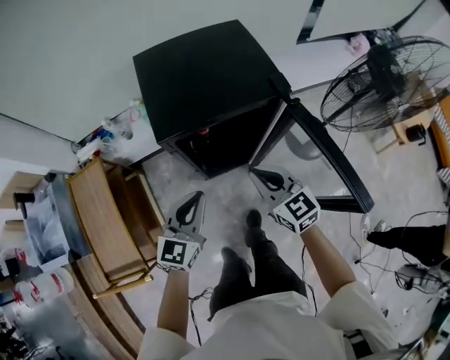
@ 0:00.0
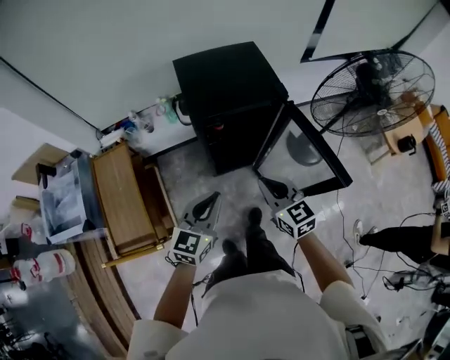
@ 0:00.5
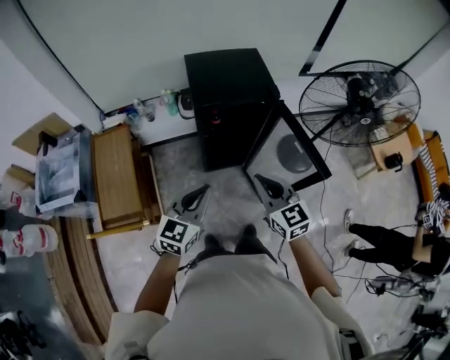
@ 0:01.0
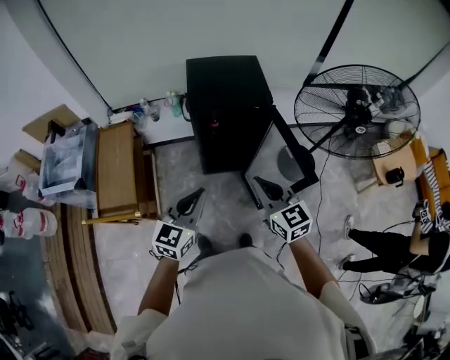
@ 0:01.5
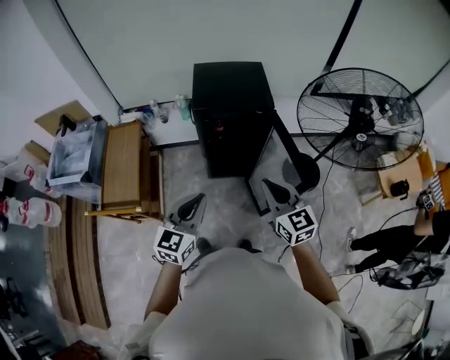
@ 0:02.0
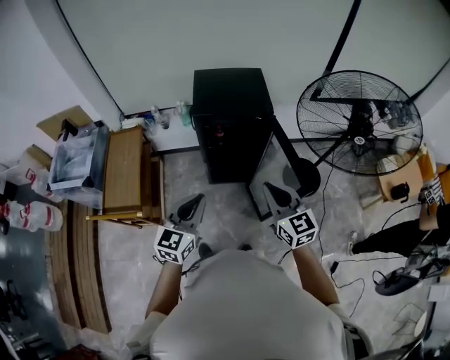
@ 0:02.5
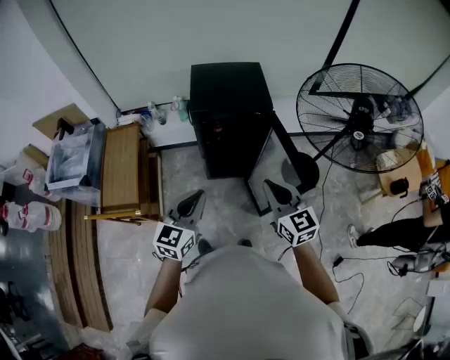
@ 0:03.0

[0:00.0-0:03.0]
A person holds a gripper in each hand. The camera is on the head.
0:00.0 to 0:01.5: Both grippers travel together backward and upward, roughly 30 cm.
0:01.5 to 0:03.0: The right gripper shifts approximately 5 cm to the right.

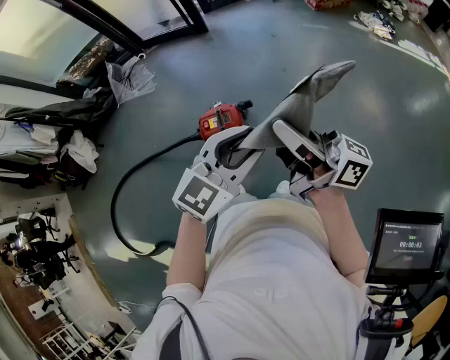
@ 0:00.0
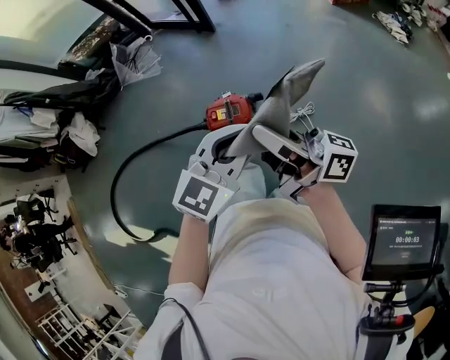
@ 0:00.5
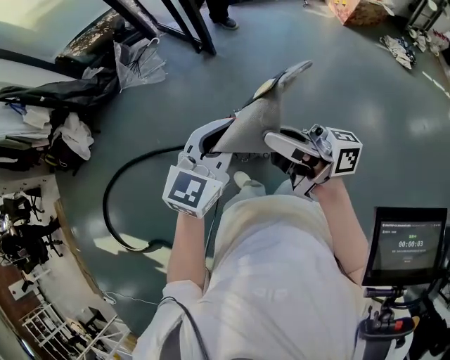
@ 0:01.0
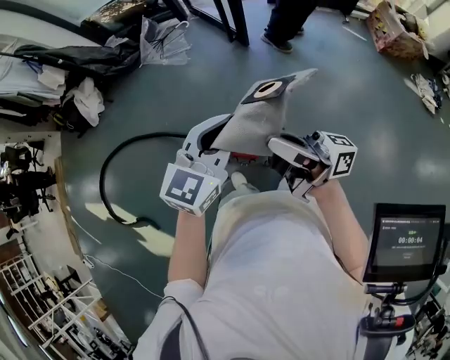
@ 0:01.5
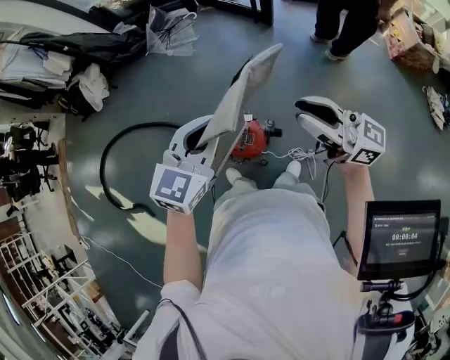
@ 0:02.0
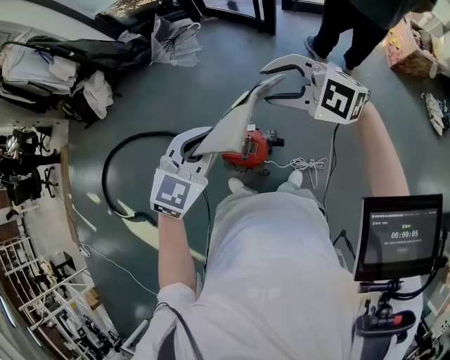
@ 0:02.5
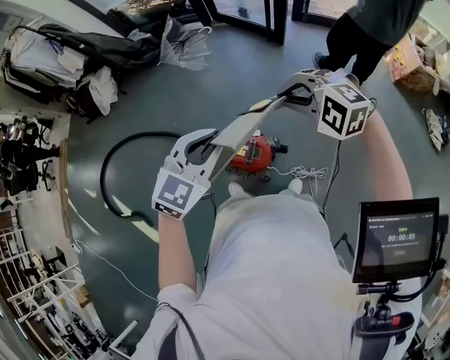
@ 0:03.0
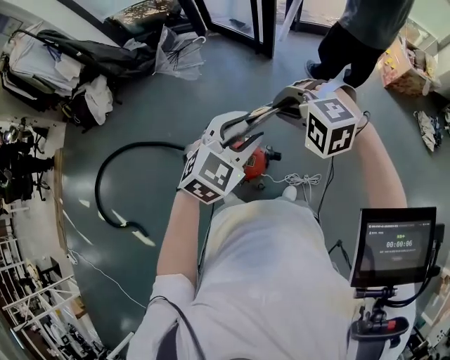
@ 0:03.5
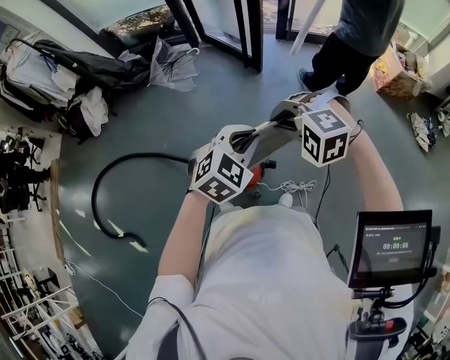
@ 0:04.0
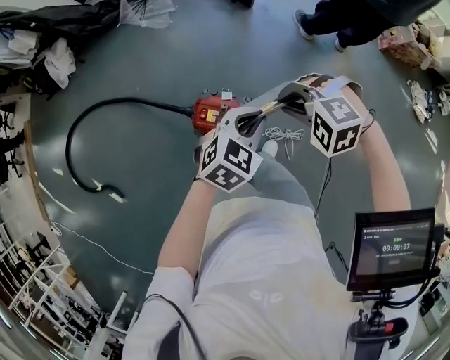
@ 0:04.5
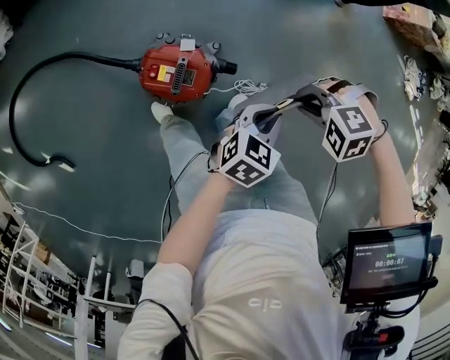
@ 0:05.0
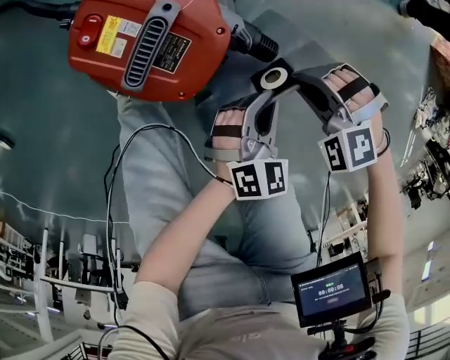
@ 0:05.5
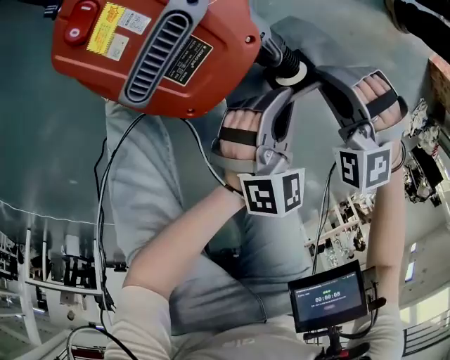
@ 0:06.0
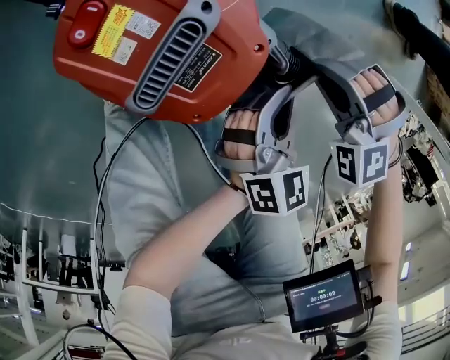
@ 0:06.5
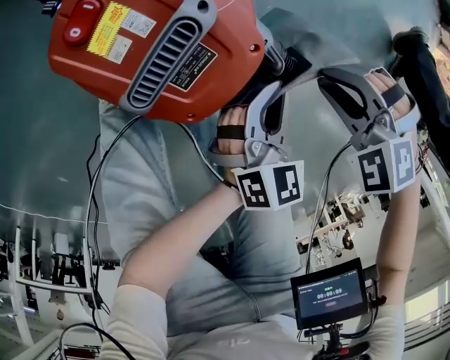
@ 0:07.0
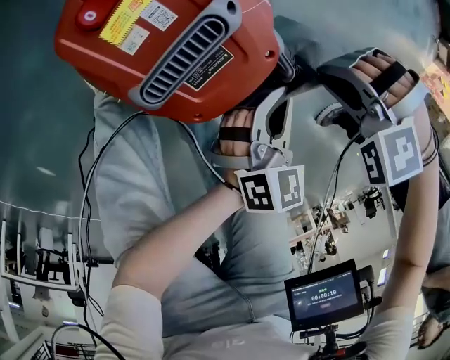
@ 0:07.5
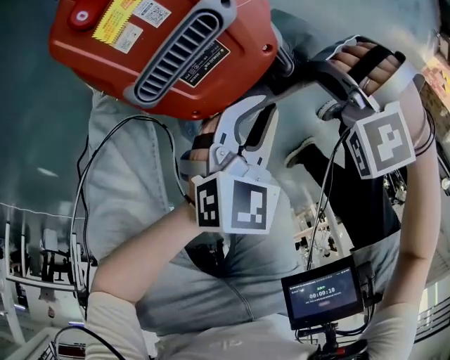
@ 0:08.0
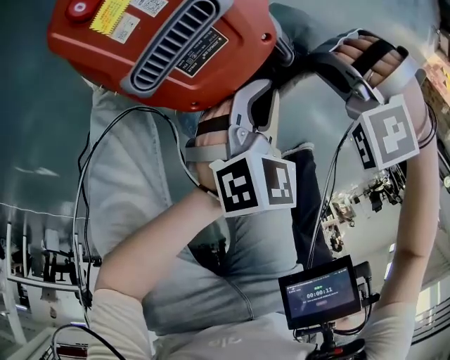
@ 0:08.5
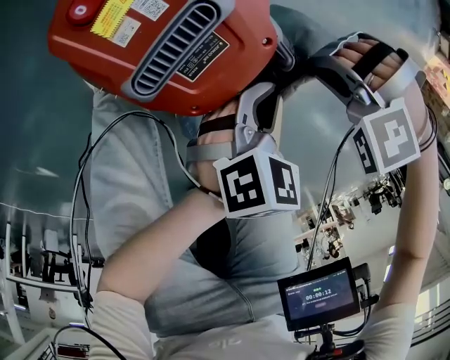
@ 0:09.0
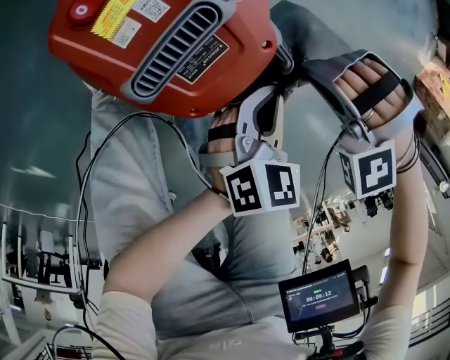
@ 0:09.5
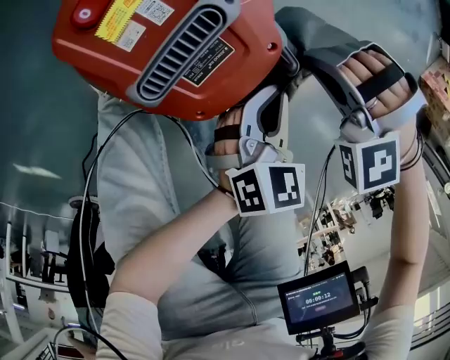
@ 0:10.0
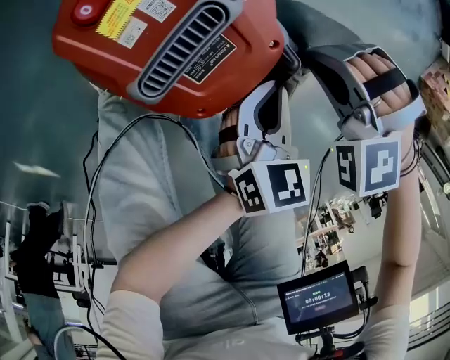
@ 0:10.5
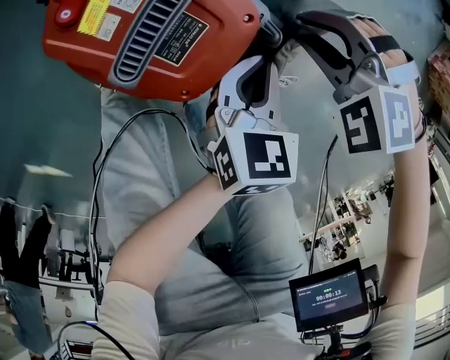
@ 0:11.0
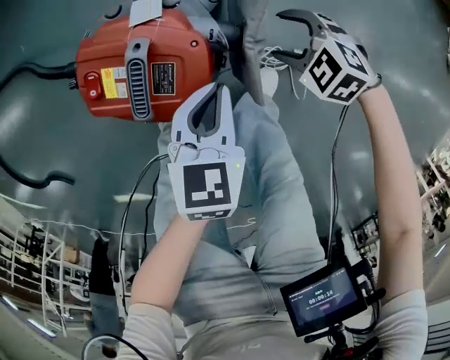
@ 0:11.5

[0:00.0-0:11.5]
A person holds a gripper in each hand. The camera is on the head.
0:00.0 to 0:02.0: The left gripper shifts by about 35 cm, rotates roughly 40 degrees, and closes. Meanwhile the right gripper ends up approximately 35 cm from where it was, and turns by approximately 40 degrees.
0:02.0 to 0:04.0: The right gripper is displaced to the left by about 5 cm, angles its fingers downward, by about 80 degrees, and opens, then closes again, while the left gripper moves to the right, approximately 5 cm, changes its angle by about 30 degrees, and opens, then closes again.
0:04.0 to 0:06.0: The two grippers go about 70 cm downward. The right gripper changes its angle by about 20 degrees. The left gripper changes its angle by approximately 40 degrees.
0:06.0 to 0:07.5: The right gripper turns by some 30 degrees.
0:09.5 to 0:11.5: The left gripper changes place by some 10 cm; the right gripper goes some 5 cm downward, rolls clockwise, seen from behind, by roughly 80 degrees, and opens its fingers.

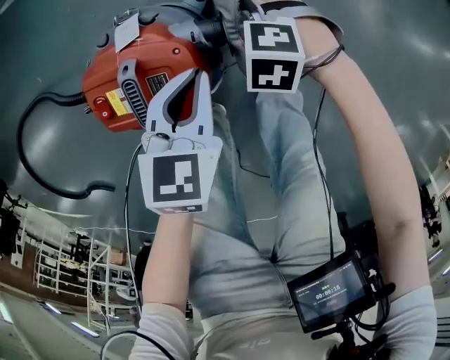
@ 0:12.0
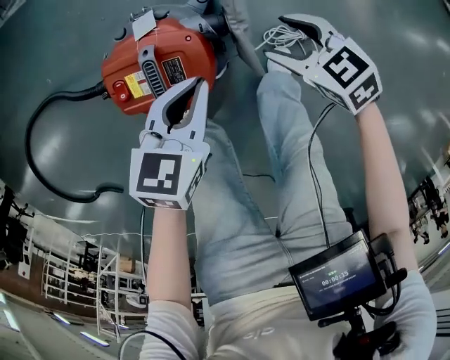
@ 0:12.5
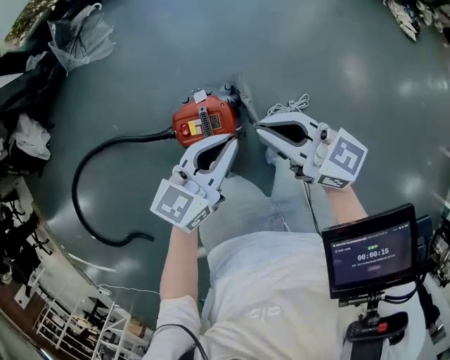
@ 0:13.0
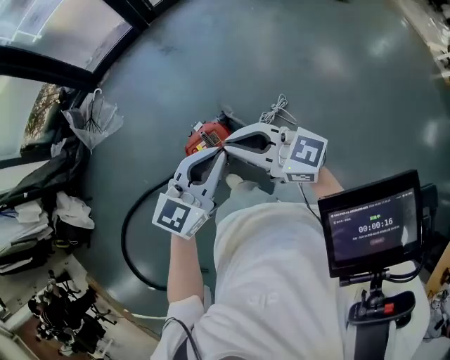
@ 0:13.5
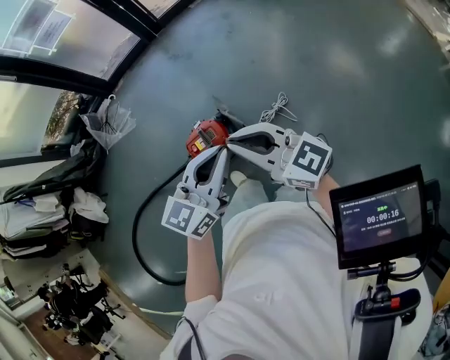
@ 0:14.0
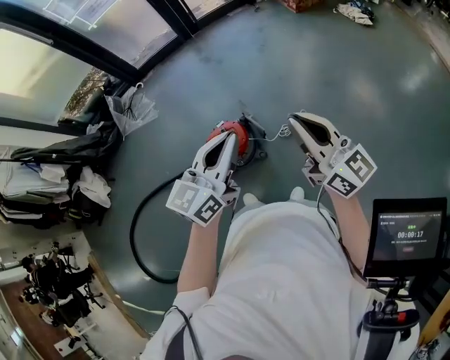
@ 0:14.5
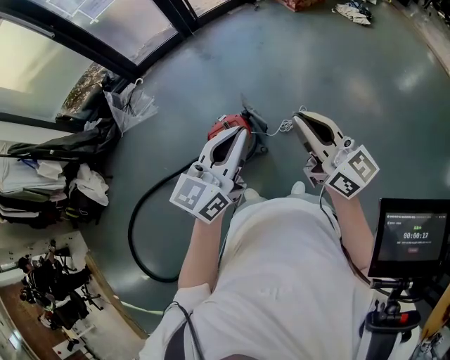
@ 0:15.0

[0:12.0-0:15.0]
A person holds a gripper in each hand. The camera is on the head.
0:12.0 to 0:13.5: The two grippers go approximately 70 cm upward. The right gripper angles its fingers upward, by roughly 80 degrees, and closes; the left gripper tips its fingers upward by approximately 40 degrees.
0:13.5 to 0:15.0: The right gripper travels to the right, backward and upward by about 20 cm, and turns by some 30 degrees. The left gripper shifts about 15 cm backward and upward.

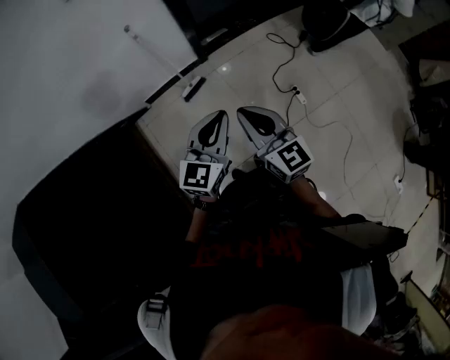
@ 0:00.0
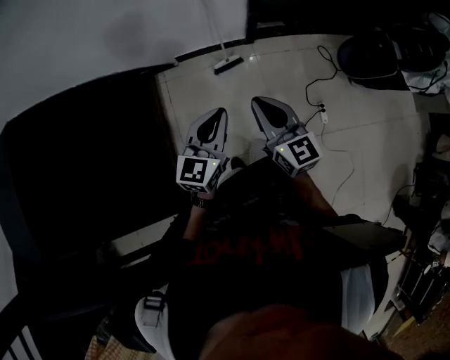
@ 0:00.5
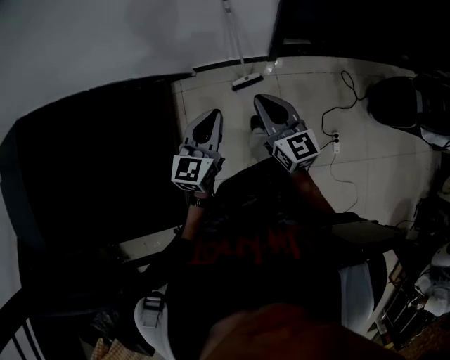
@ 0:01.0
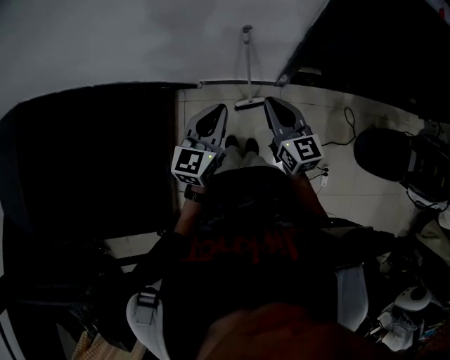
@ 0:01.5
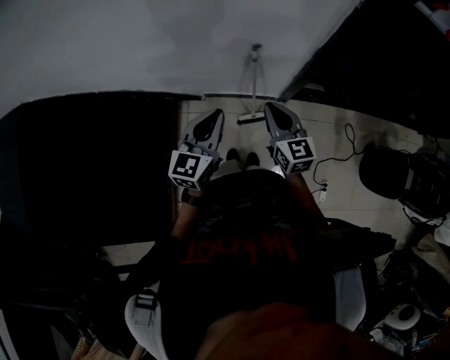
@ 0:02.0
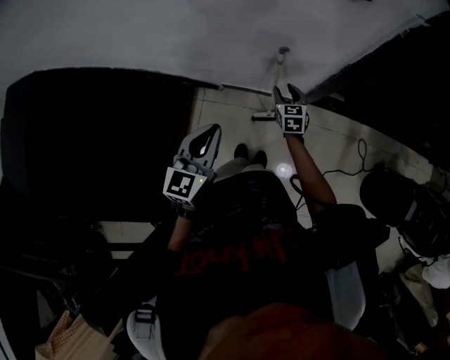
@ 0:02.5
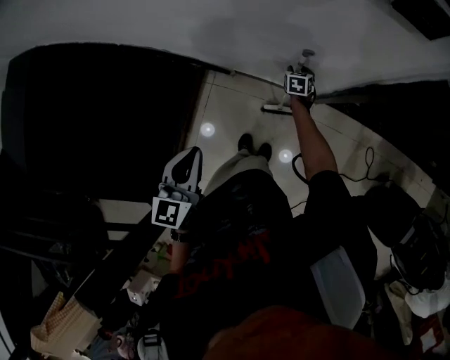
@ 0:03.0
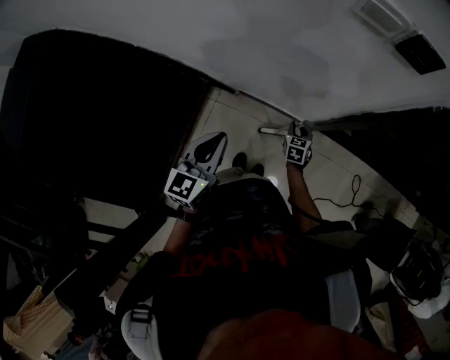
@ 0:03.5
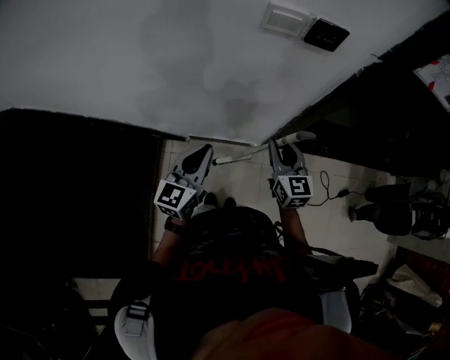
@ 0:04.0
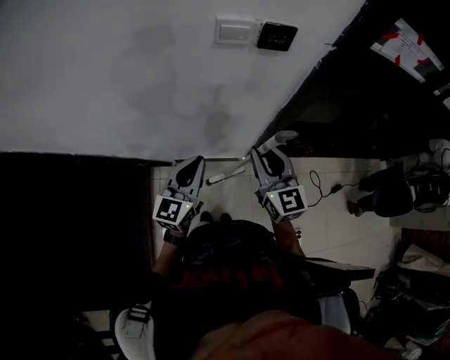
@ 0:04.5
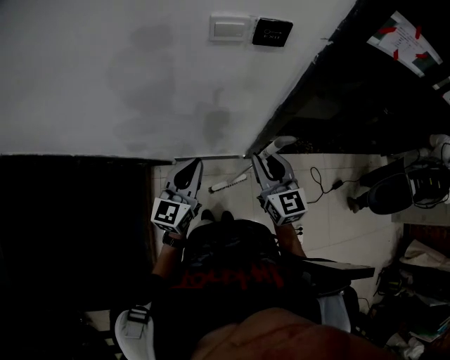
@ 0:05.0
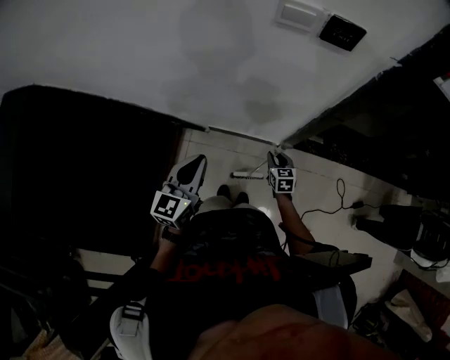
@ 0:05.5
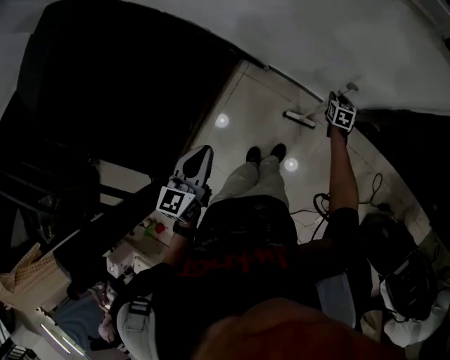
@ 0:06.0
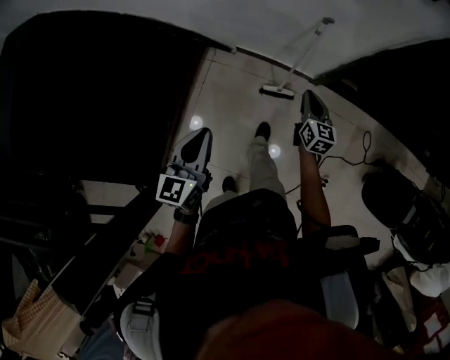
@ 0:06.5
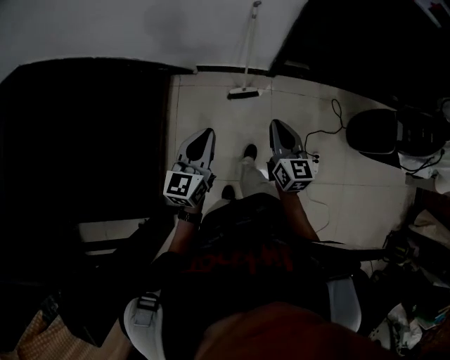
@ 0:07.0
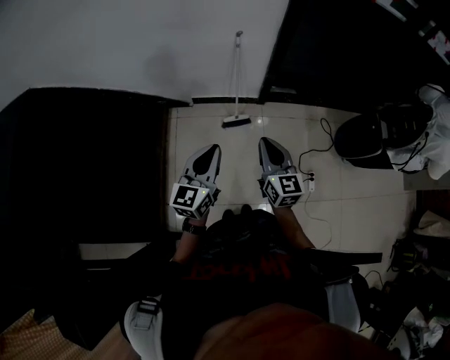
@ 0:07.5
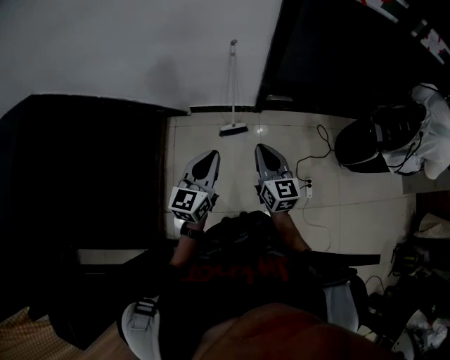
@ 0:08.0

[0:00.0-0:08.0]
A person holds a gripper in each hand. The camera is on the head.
0:00.0 to 0:02.0: The two grippers travel together, forward, roughly 60 cm. The left gripper swivels approximately 30 degrees.
0:02.0 to 0:04.0: Both grippers travel together forward, approximately 5 cm. The right gripper travels downward and back again, roughly 35 cm each way, and opens and closes again.
0:04.0 to 0:06.0: The right gripper travels downward by roughly 35 cm, and tips its fingers downward by about 30 degrees, while the left gripper goes about 25 cm backward and to the left, and changes its angle by approximately 40 degrees.
0:06.0 to 0:08.0: The left gripper moves backward and to the right, roughly 35 cm, and rotates some 40 degrees. The right gripper moves backward and upward, approximately 80 cm, tilts its fingers roughly 40 degrees upward, and closes its fingers.
